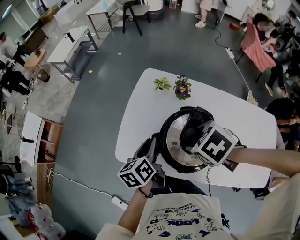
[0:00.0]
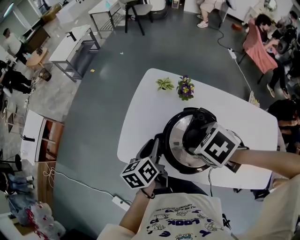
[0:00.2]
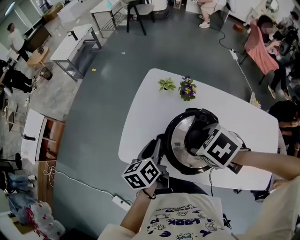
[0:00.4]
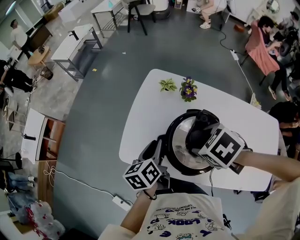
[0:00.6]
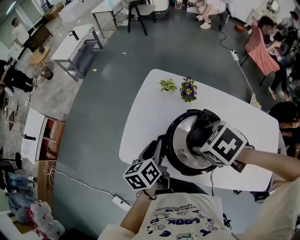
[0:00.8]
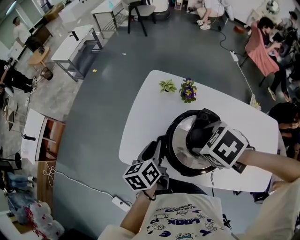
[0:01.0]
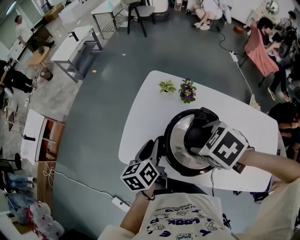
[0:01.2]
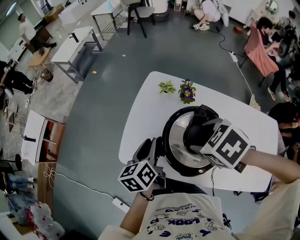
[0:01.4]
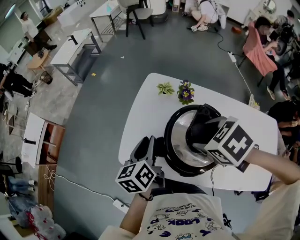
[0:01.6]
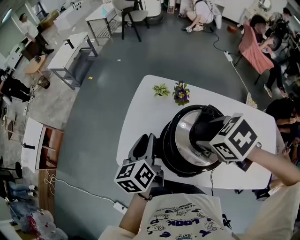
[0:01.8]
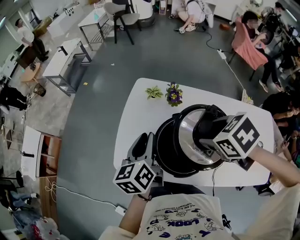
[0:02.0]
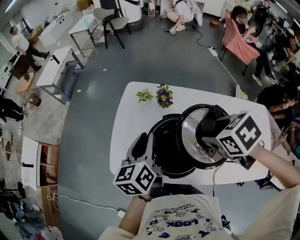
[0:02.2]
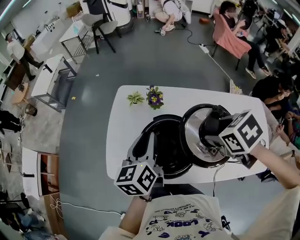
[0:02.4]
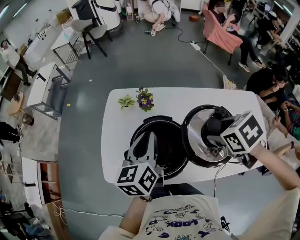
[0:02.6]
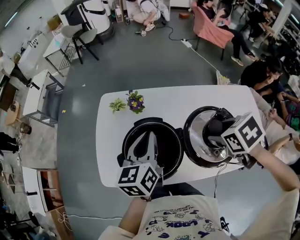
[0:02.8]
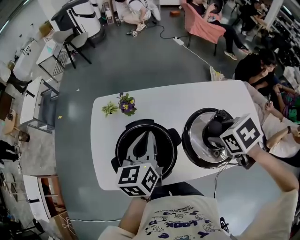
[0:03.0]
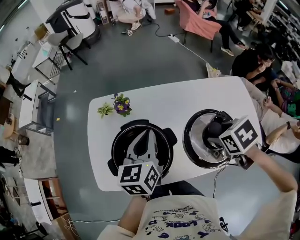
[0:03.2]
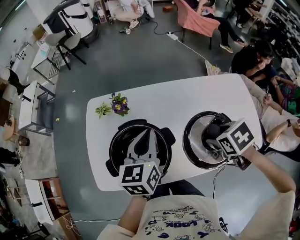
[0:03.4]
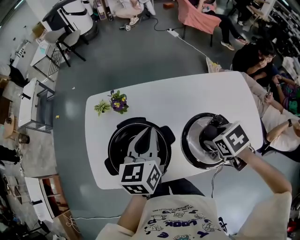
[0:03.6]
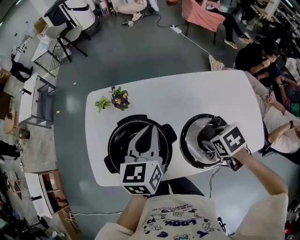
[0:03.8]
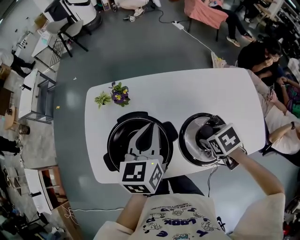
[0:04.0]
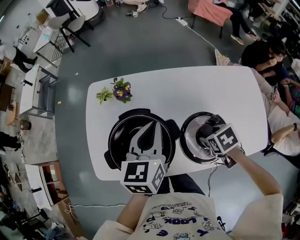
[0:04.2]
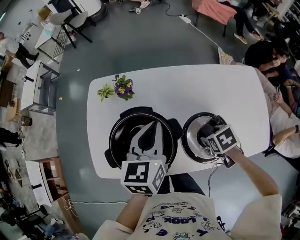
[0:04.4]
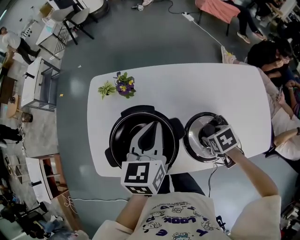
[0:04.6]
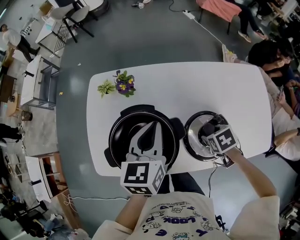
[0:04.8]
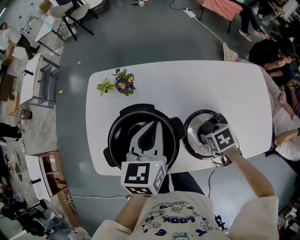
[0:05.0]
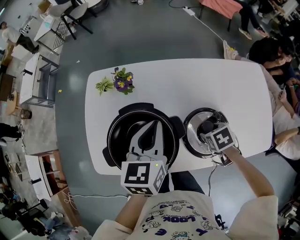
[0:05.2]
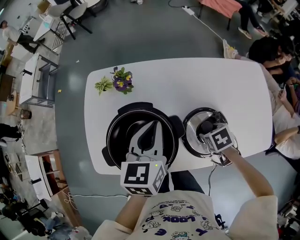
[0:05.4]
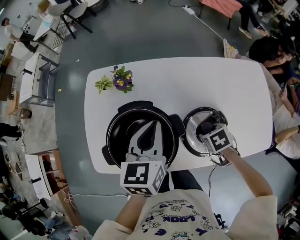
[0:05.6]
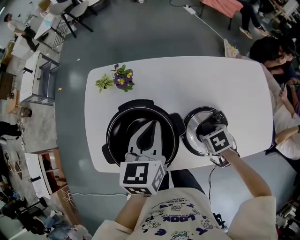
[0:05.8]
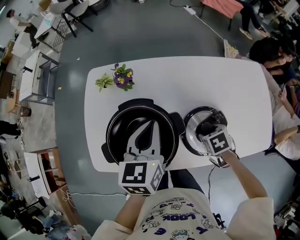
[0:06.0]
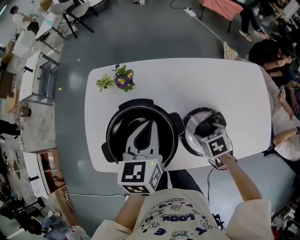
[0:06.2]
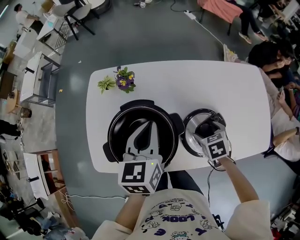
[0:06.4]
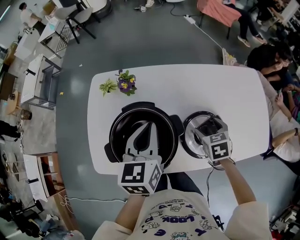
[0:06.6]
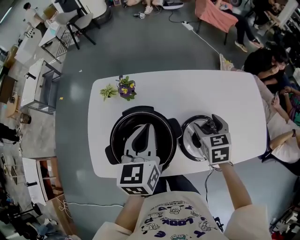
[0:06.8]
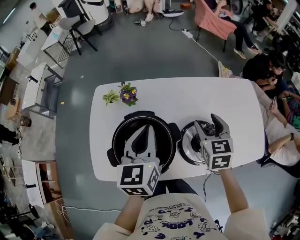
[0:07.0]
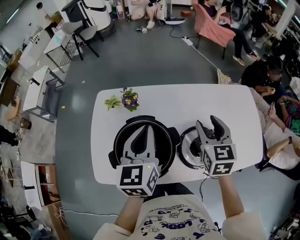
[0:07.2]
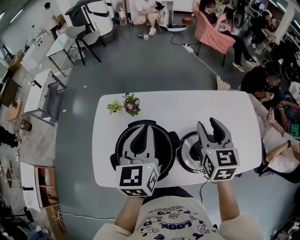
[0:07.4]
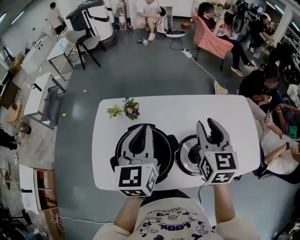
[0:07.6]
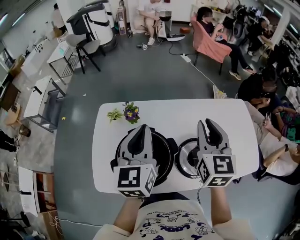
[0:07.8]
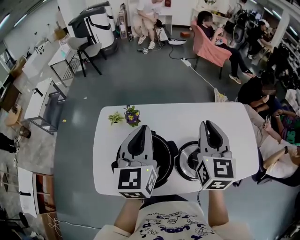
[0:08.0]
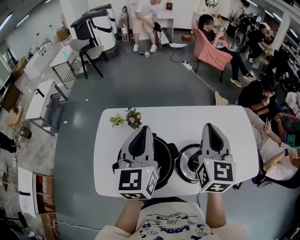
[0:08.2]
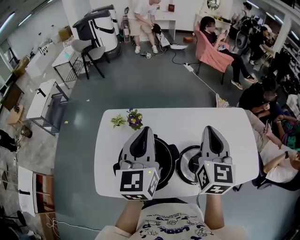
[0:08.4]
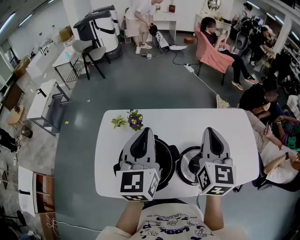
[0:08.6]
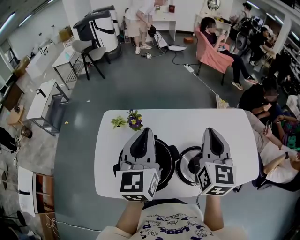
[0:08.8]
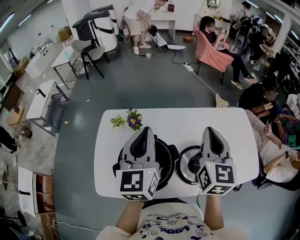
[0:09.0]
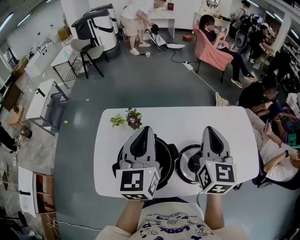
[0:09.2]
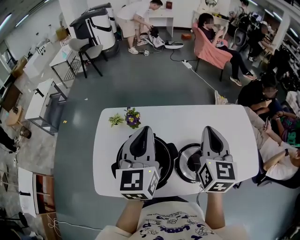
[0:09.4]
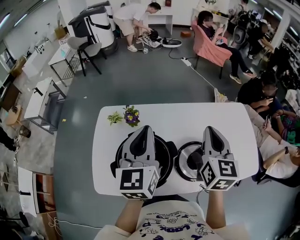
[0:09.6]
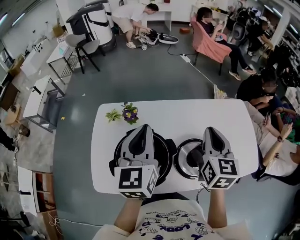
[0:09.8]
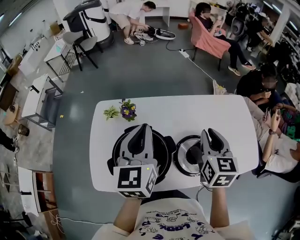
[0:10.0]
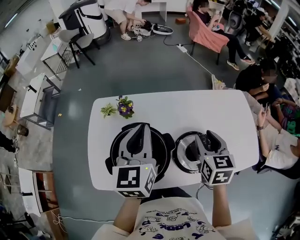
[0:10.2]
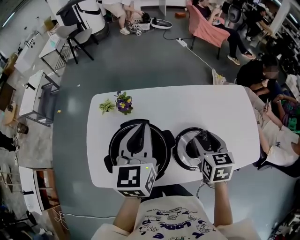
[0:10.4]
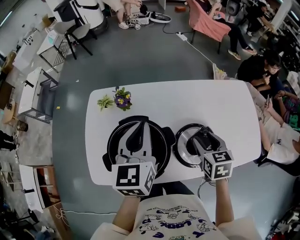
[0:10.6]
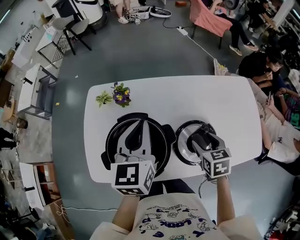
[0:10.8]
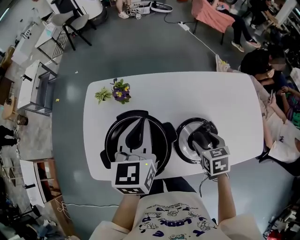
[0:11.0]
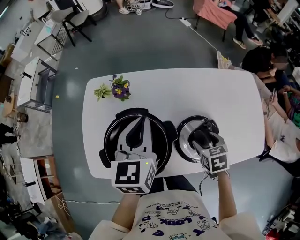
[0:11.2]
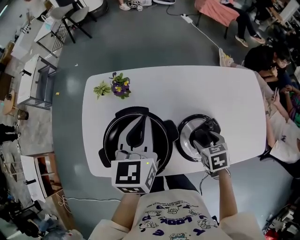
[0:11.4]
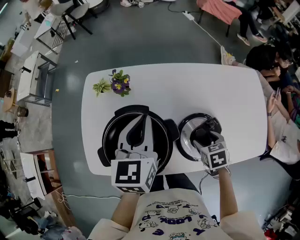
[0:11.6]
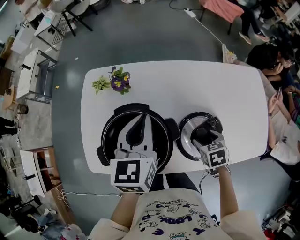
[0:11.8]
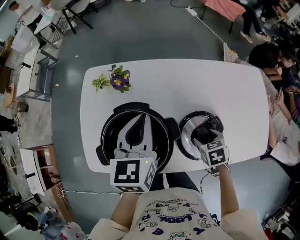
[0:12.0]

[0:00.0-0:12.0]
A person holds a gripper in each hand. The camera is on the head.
0:00.0 to 0:01.6: The two grippers go about 5 cm upward.
0:01.6 to 0:03.0: The right gripper changes place by roughly 30 cm, and swivels some 40 degrees. The left gripper shifts by some 25 cm, turns by some 30 degrees, and closes its fingers.
0:03.0 to 0:04.4: The right gripper shifts approximately 15 cm downward.
0:04.4 to 0:06.0: The right gripper is displaced downward by about 5 cm.
0:06.0 to 0:07.6: The left gripper shifts some 15 cm upward; the right gripper heads upward, covering about 30 cm, and tips its fingers upward by about 60 degrees.
0:07.6 to 0:09.0: The two grippers go about 5 cm upward.
0:09.0 to 0:10.4: The left gripper is displaced downward by roughly 5 cm; the right gripper travels downward by about 20 cm, points its fingers about 30 degrees further downward, and opens up.
0:10.4 to 0:12.0: The right gripper heads downward, covering about 20 cm, and rotates some 30 degrees. The left gripper goes approximately 10 cm downward.

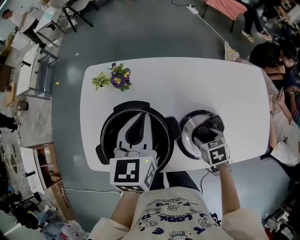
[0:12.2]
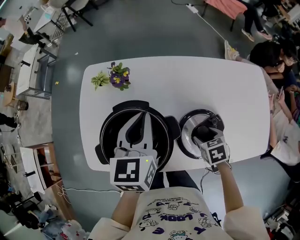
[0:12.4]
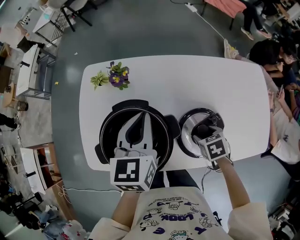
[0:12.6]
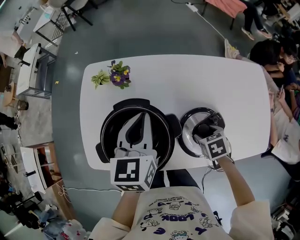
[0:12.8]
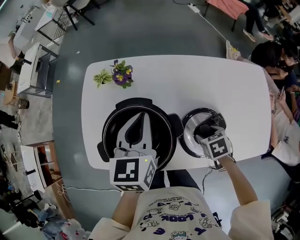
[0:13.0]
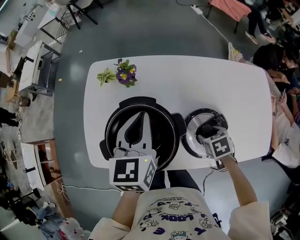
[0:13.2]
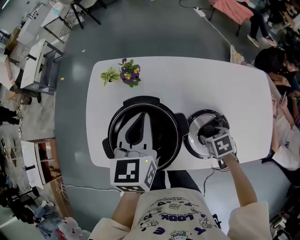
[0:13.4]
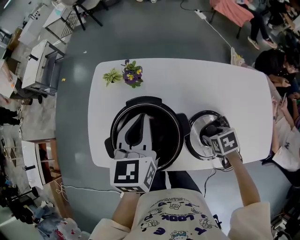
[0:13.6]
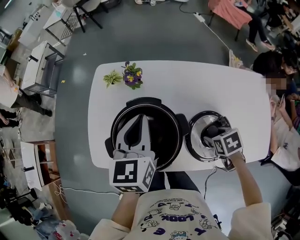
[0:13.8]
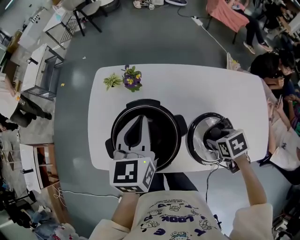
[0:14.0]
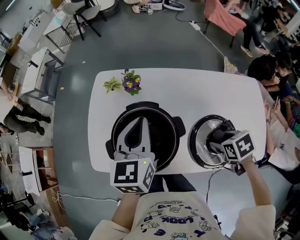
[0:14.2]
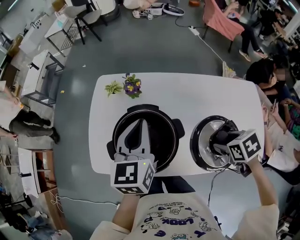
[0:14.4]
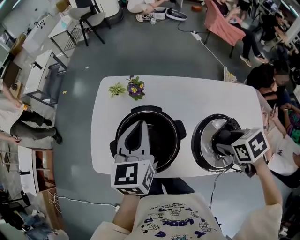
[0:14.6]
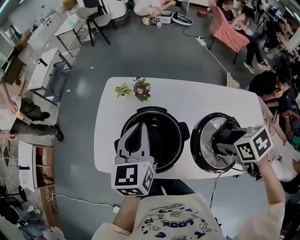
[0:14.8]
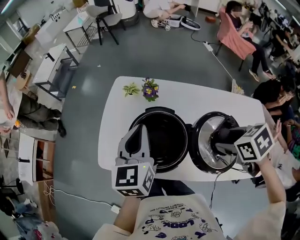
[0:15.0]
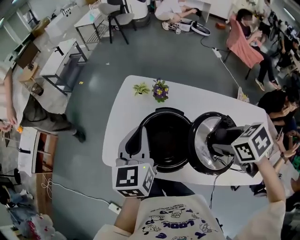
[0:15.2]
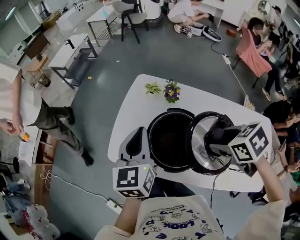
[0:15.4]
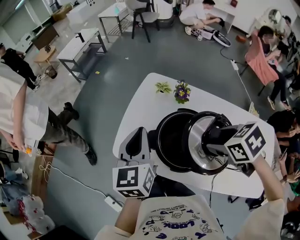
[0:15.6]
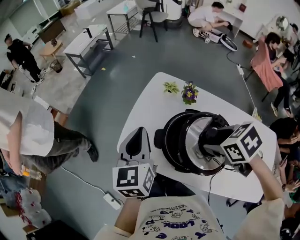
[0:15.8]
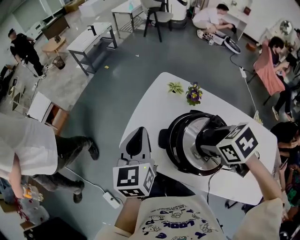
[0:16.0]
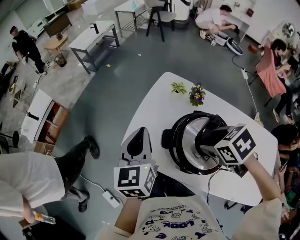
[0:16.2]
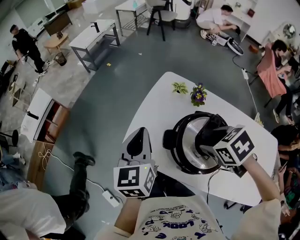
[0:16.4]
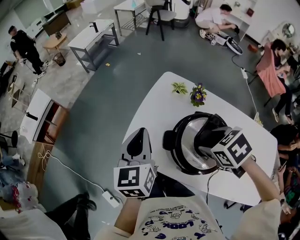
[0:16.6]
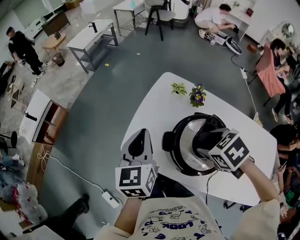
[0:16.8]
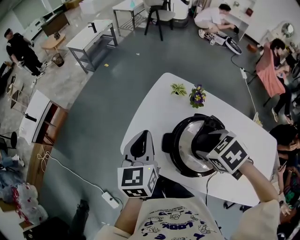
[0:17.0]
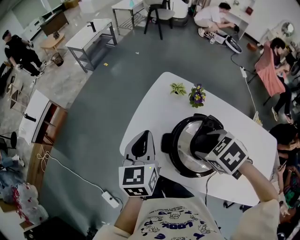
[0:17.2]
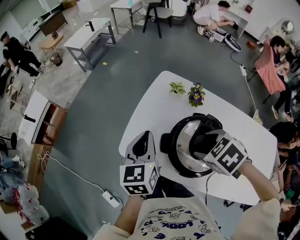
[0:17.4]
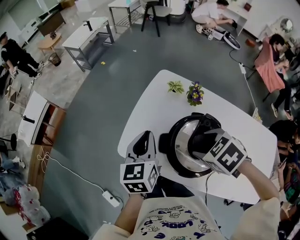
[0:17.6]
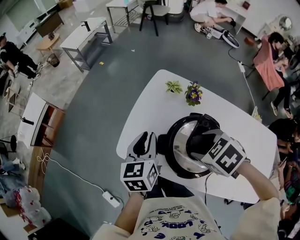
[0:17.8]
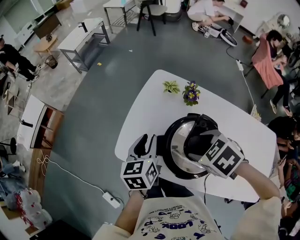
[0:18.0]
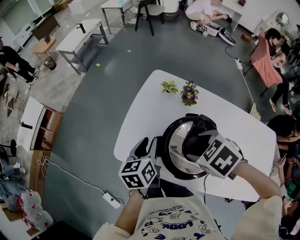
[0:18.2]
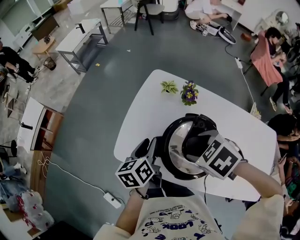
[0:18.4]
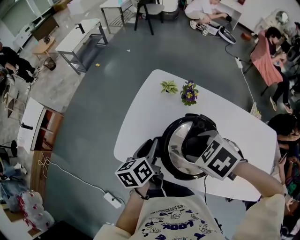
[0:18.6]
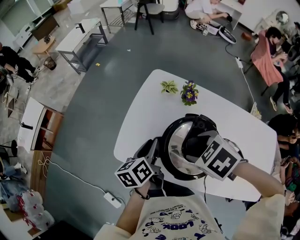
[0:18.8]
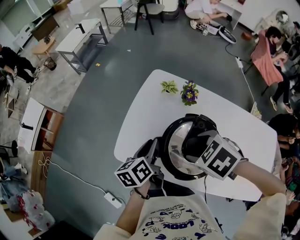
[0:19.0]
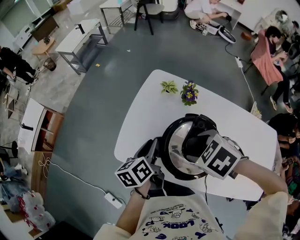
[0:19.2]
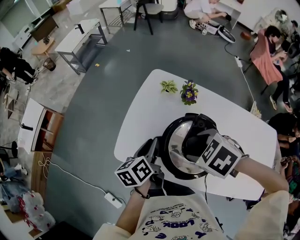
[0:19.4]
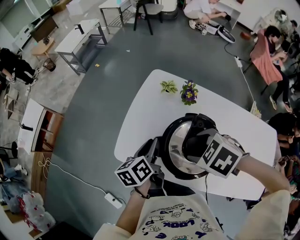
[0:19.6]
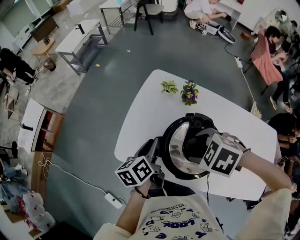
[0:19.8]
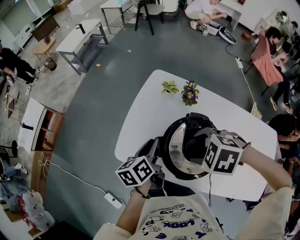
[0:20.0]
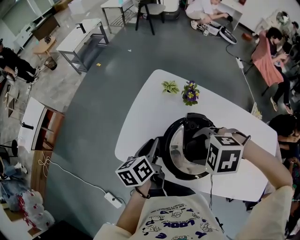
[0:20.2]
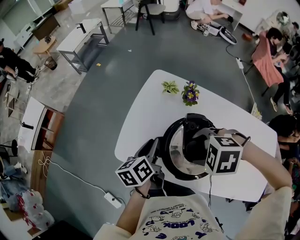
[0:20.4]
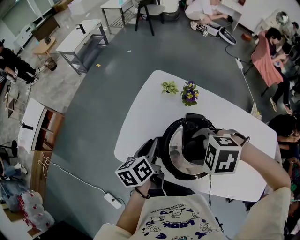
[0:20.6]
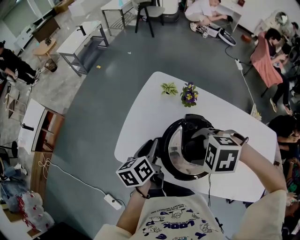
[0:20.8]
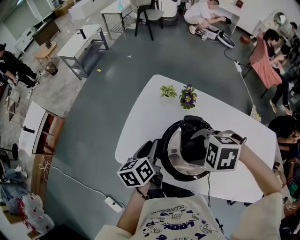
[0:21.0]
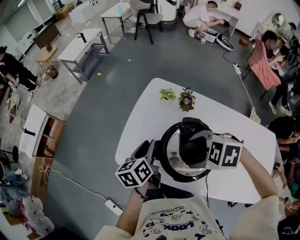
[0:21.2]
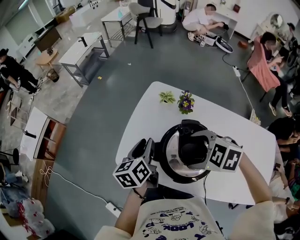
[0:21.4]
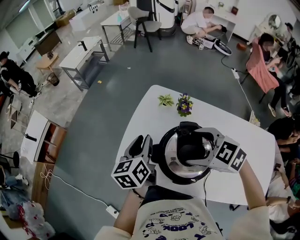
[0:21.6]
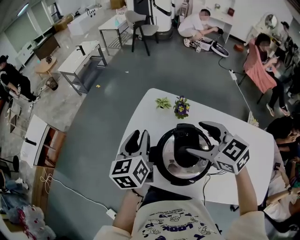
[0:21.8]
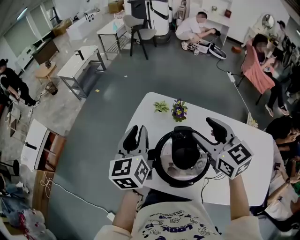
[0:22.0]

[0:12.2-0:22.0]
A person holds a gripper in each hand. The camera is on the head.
0:12.2 to 0:13.6: The left gripper moves about 5 cm.
0:13.6 to 0:15.0: The right gripper moves upward, approximately 25 cm, while the left gripper ends up roughly 10 cm from where it was.
0:15.0 to 0:16.4: The left gripper is displaced to the left by about 20 cm, and rotates about 20 degrees, while the right gripper is displaced to the left and forward by approximately 25 cm, and rotates about 30 degrees.
0:16.4 to 0:17.8: The left gripper is displaced downward and to the right by about 10 cm.
0:17.8 to 0:19.2: The left gripper is displaced downward by some 5 cm, and swivels approximately 30 degrees.
0:19.2 to 0:20.6: The right gripper changes its angle by approximately 30 degrees.
0:20.6 to 0:22.0: The two grippers go roughly 15 cm upward. The left gripper swivels approximately 40 degrees. The right gripper angles its fingers upward, by roughly 60 degrees.

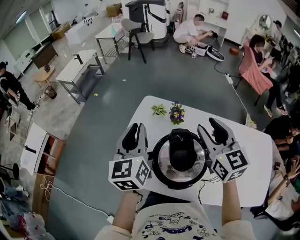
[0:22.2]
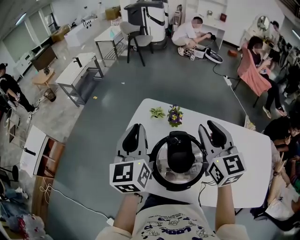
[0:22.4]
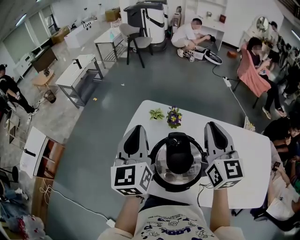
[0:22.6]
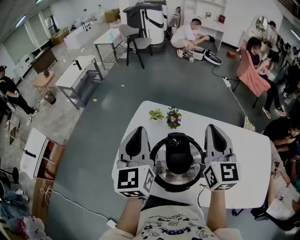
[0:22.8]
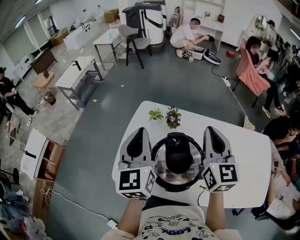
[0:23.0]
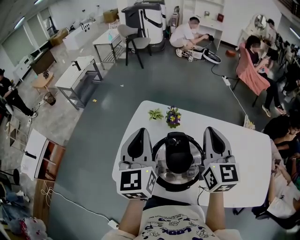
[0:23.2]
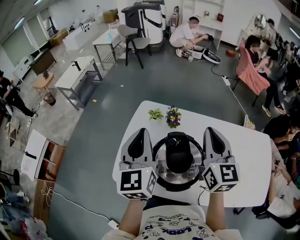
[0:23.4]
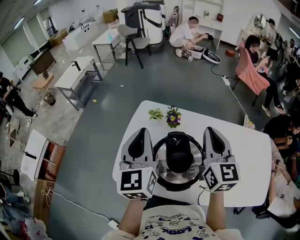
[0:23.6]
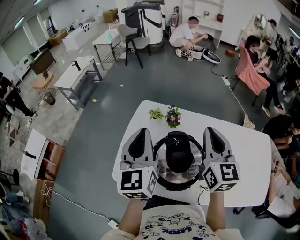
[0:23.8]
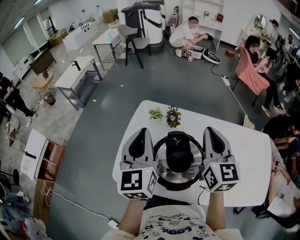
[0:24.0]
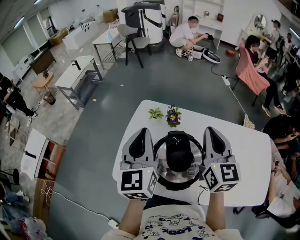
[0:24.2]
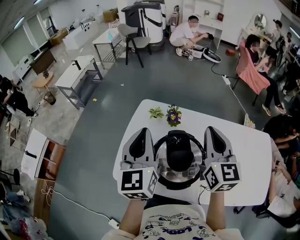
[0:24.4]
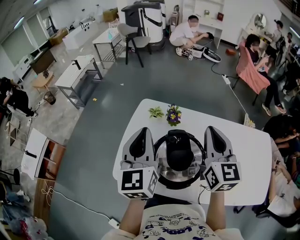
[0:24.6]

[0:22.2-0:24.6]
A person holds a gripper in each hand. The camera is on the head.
0:22.2 to 0:23.4: The right gripper closes its fingers; the left gripper moves some 5 cm.
0:23.4 to 0:24.6: Both grippers stay about where they are.
